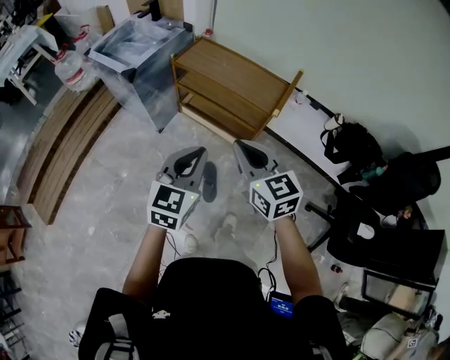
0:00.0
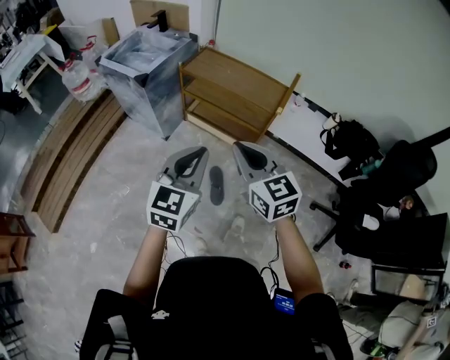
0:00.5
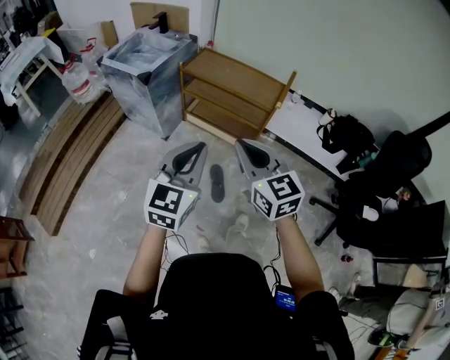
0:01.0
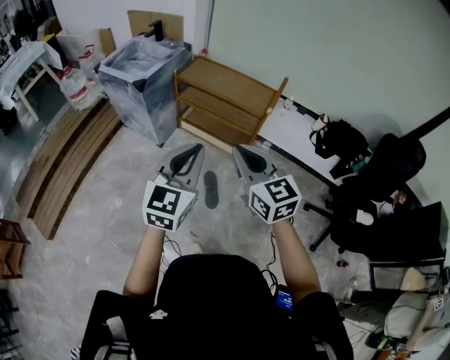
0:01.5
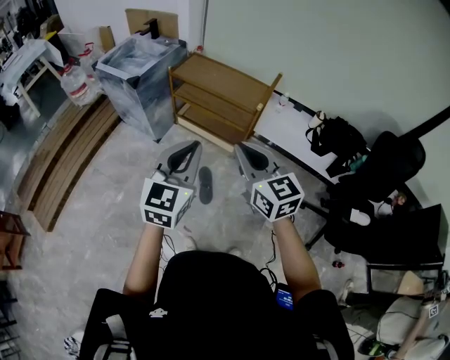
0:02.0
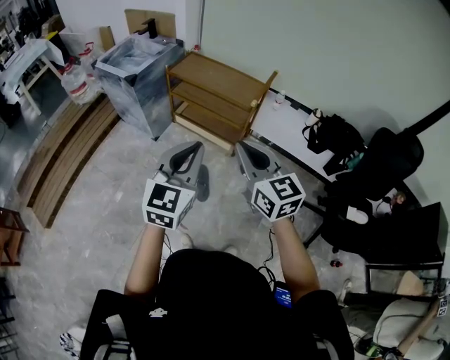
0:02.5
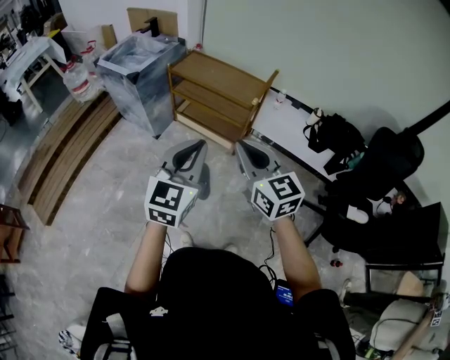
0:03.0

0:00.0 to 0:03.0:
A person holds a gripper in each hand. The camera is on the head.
0:00.0 to 0:01.5: The left gripper shifts approximately 15 cm backward, upward and to the left; the right gripper heads backward, covering some 15 cm.
0:01.5 to 0:03.0: Both grippers move to the right and backward, about 10 cm.

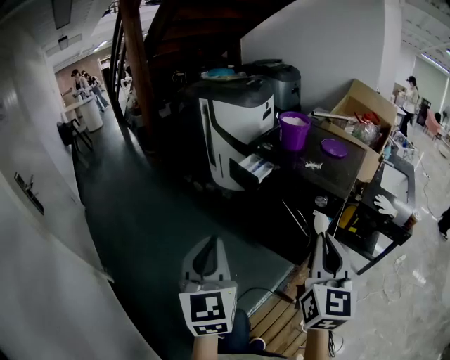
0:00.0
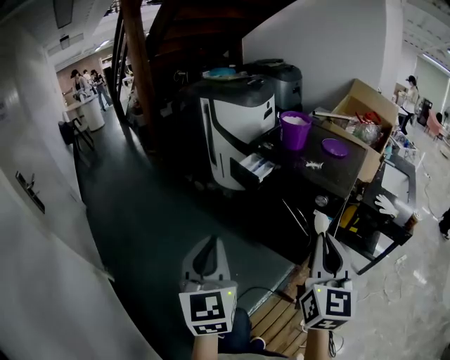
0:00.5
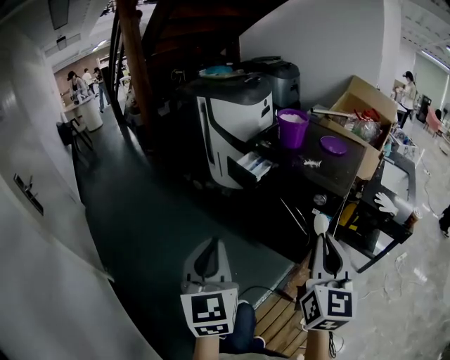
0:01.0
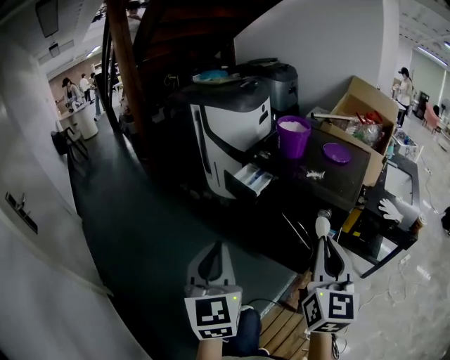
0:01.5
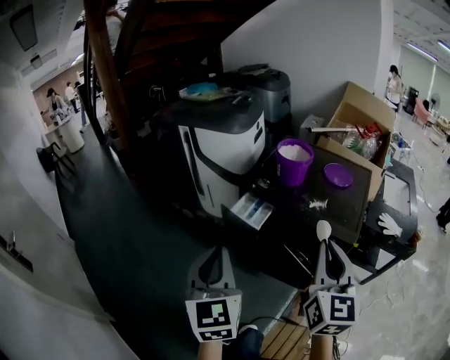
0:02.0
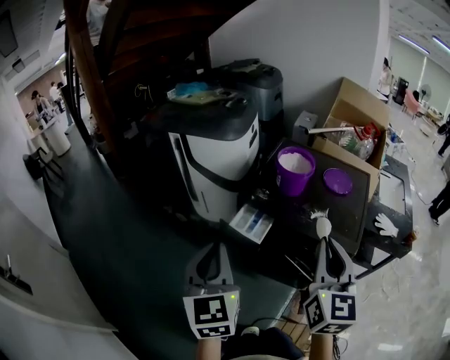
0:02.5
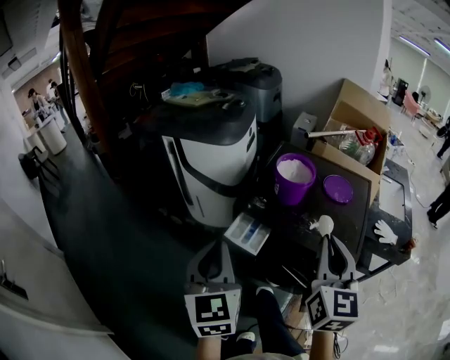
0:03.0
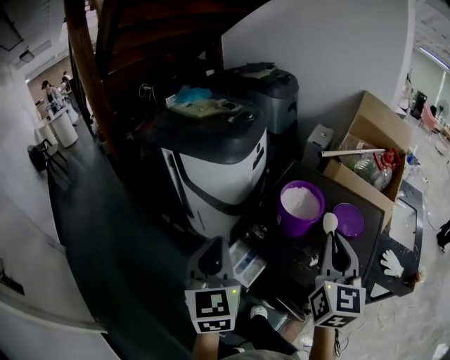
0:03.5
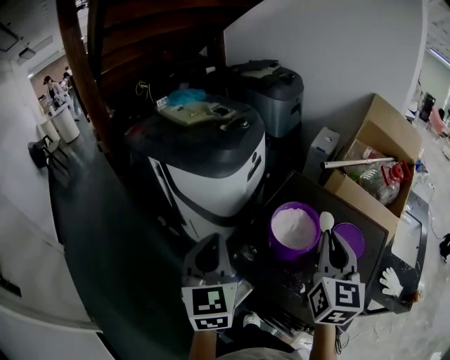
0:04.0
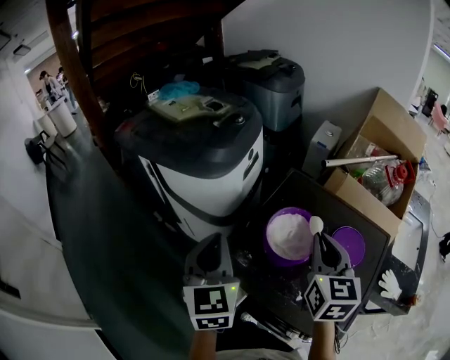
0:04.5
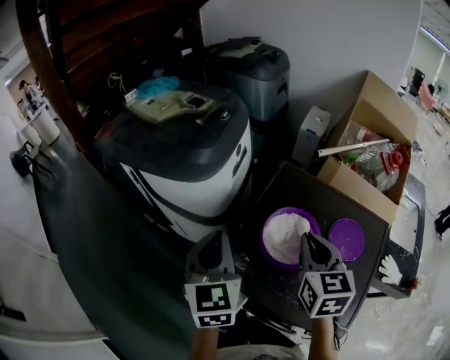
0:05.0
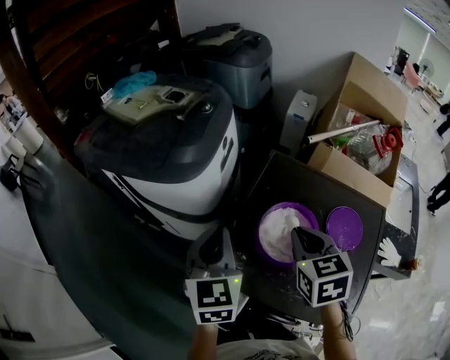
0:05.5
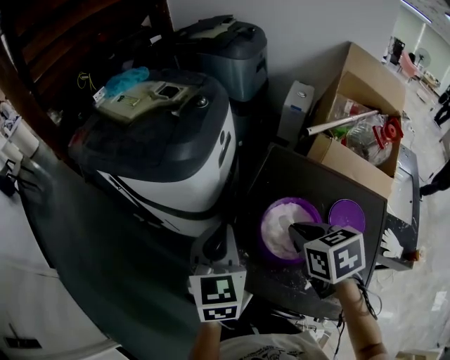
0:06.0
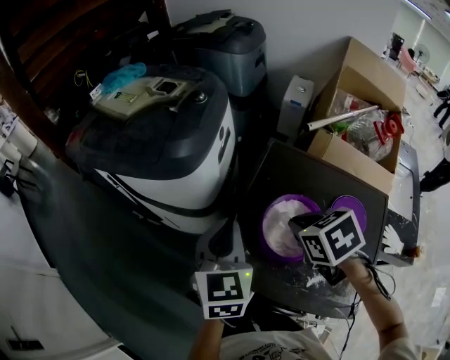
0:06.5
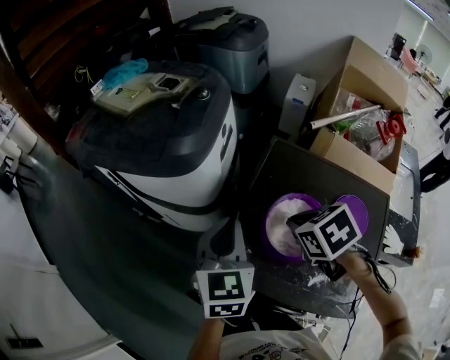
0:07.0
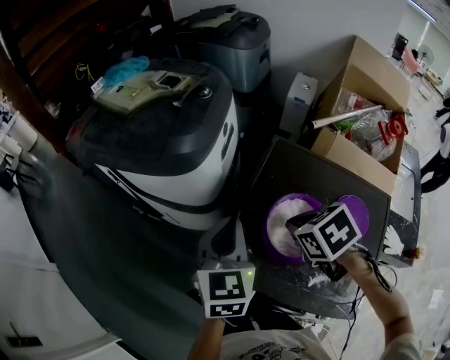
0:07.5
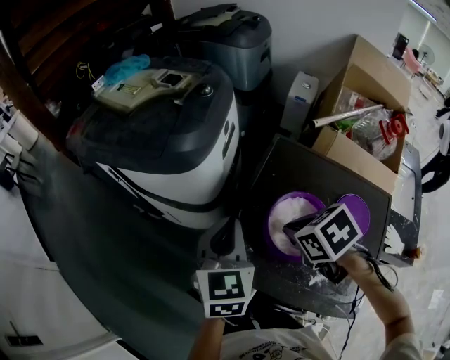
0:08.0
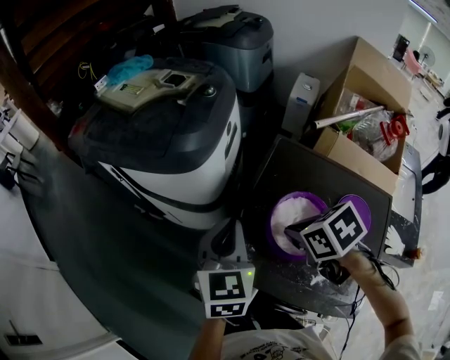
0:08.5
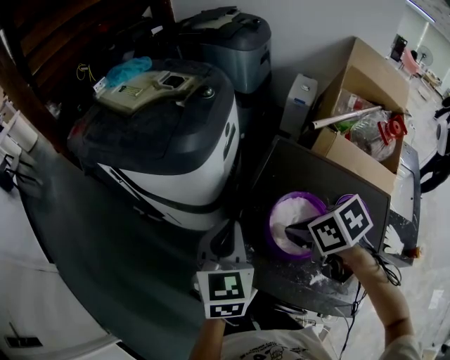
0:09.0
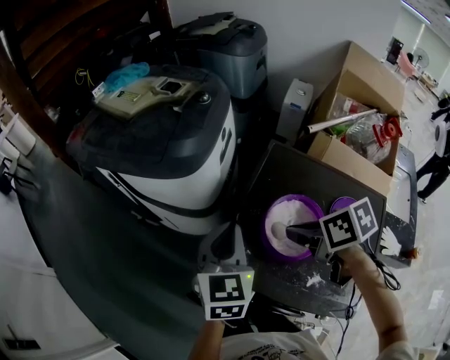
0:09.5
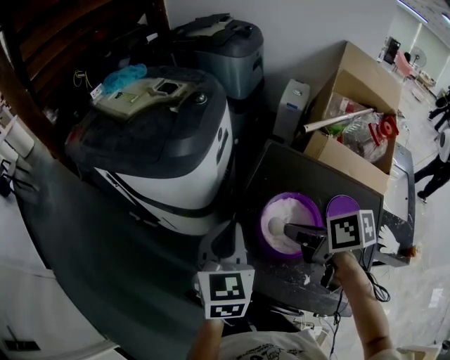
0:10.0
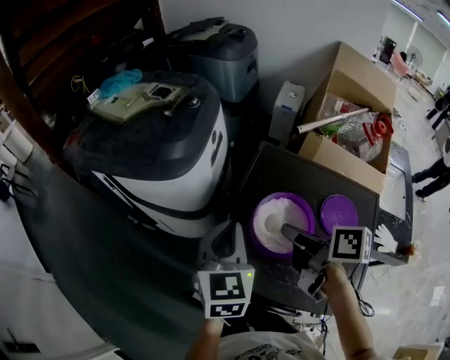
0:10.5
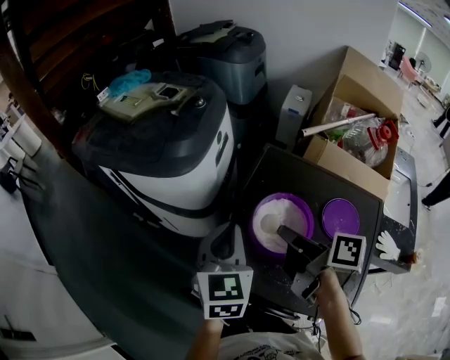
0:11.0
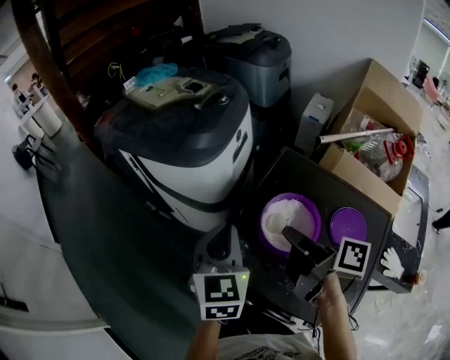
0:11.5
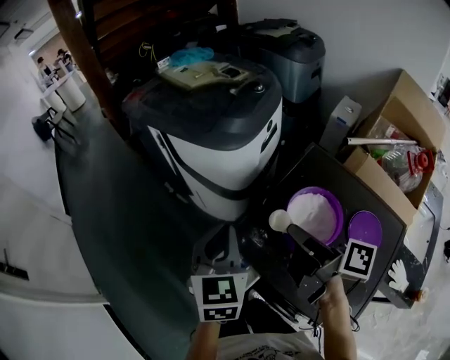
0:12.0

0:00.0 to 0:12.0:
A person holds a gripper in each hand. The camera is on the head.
0:00.0 to 0:02.0: Both grippers travel together forward, some 25 cm.
0:02.0 to 0:04.0: Both grippers travel together forward, about 40 cm.
0:04.0 to 0:06.0: The left gripper goes some 15 cm forward, downward and to the right. Meanwhile the right gripper goes some 15 cm downward and forward, and tips its fingers downward by some 40 degrees.
0:06.0 to 0:08.0: The right gripper changes its angle by roughly 20 degrees.
0:08.0 to 0:10.0: The right gripper rotates approximately 50 degrees.
0:10.0 to 0:12.0: The right gripper heads to the left, covering roughly 5 cm, and rotates some 30 degrees; the left gripper moves to the left and backward, approximately 10 cm, and swivels some 20 degrees.

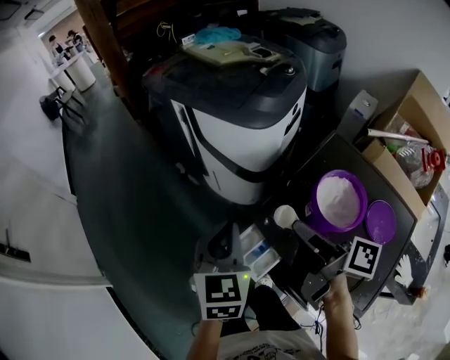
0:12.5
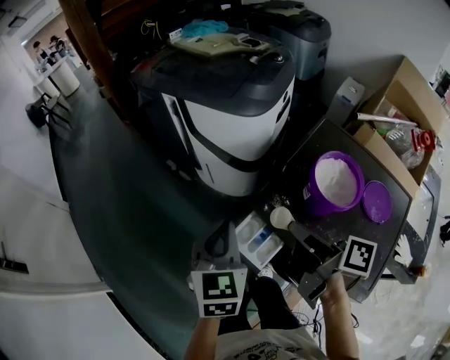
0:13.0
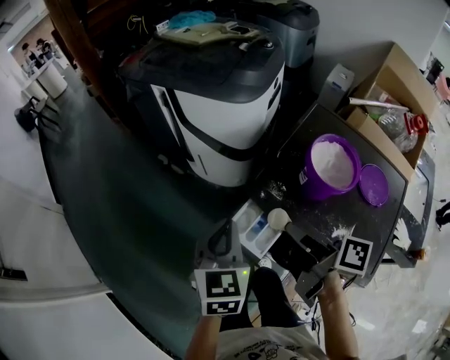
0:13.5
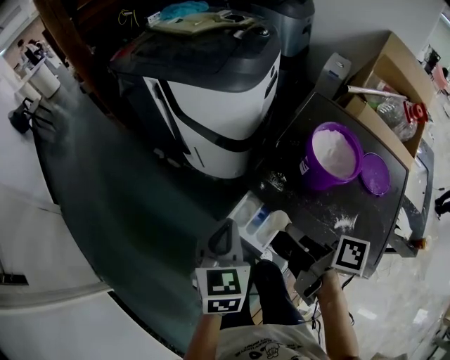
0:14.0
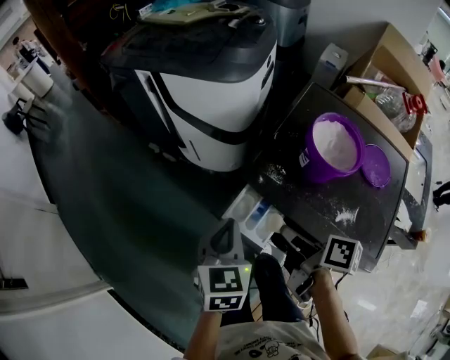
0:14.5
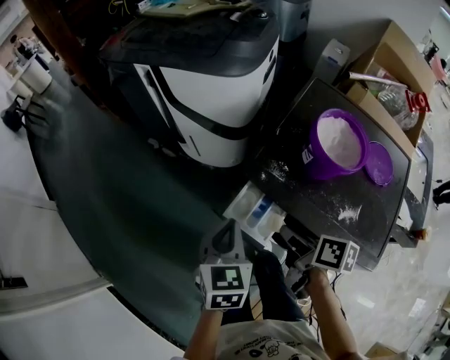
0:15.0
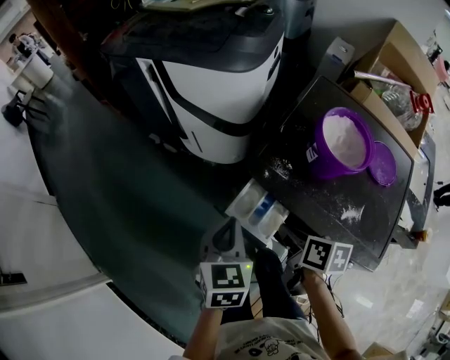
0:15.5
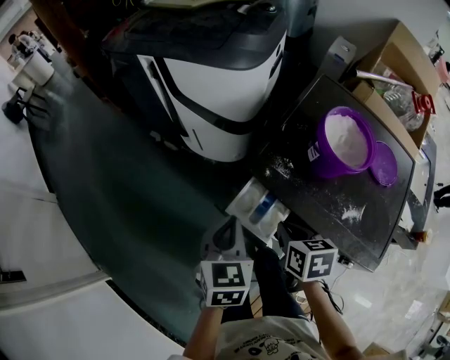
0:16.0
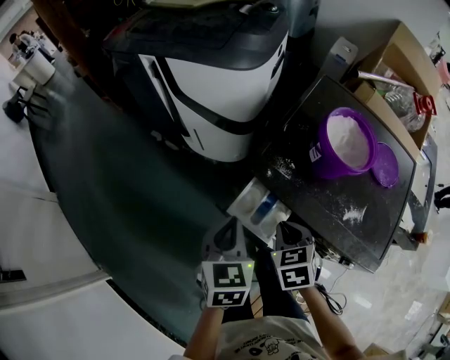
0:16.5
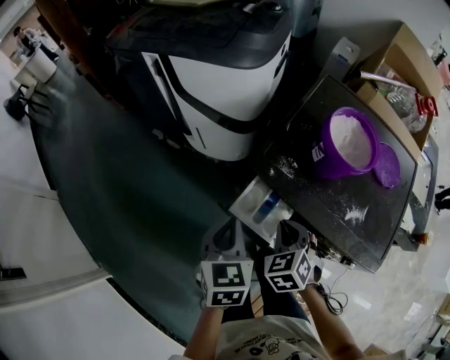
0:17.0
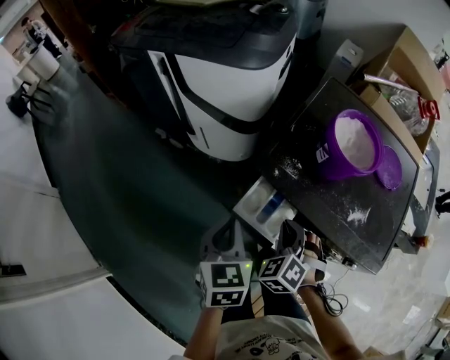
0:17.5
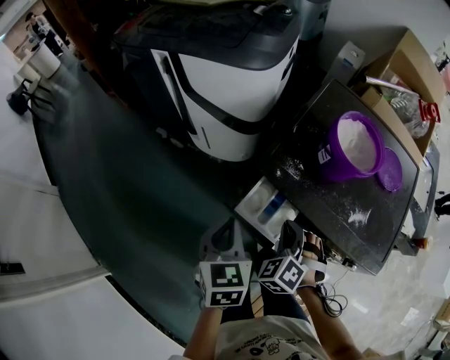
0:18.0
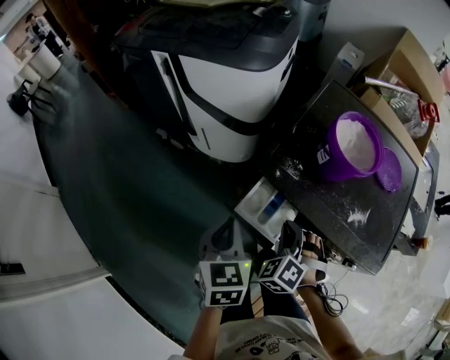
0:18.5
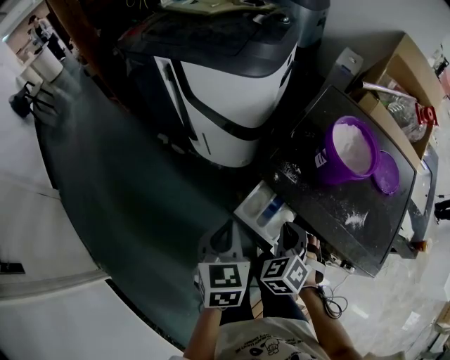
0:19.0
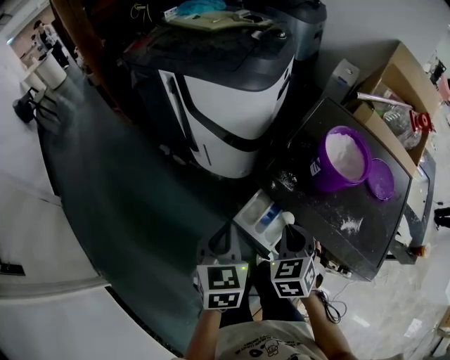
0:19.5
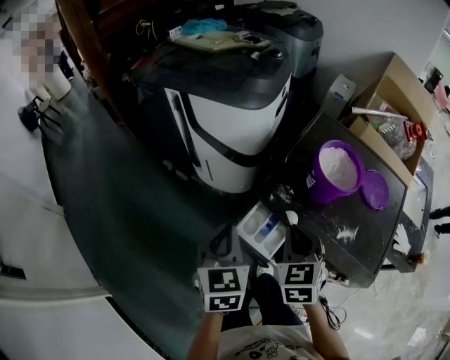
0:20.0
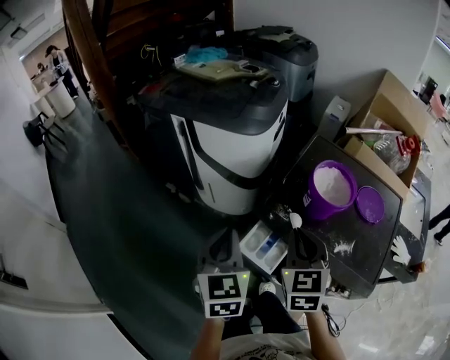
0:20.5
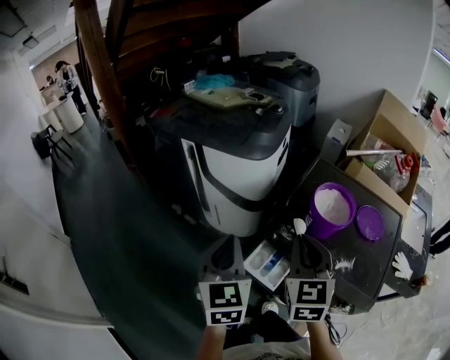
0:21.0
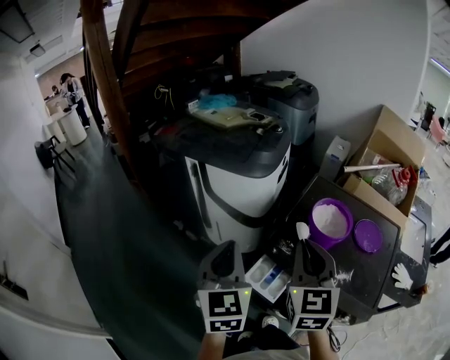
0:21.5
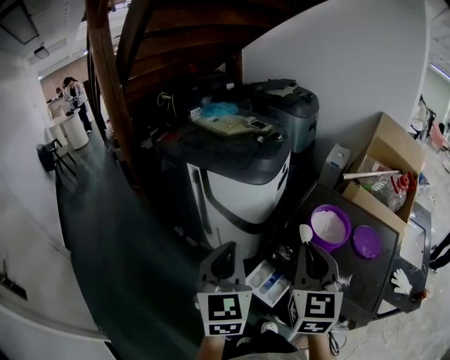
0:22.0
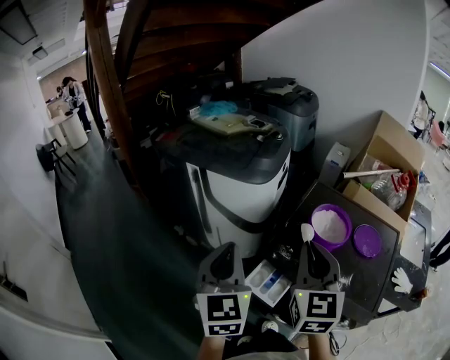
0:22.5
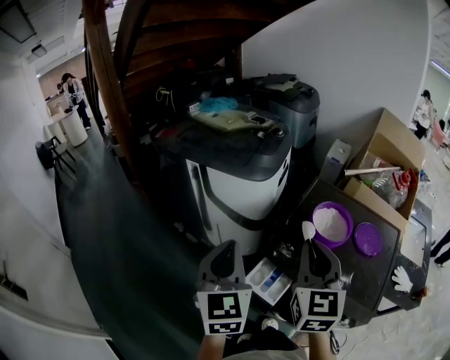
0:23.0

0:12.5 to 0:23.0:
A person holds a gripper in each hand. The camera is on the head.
0:12.5 to 0:14.5: The two grippers go some 15 cm downward and backward. The right gripper changes its angle by some 20 degrees.
0:14.5 to 0:16.5: The right gripper travels downward by some 5 cm, and rotates around the line of its fingers by approximately 70 degrees, counterclockwise from behind.
0:16.5 to 0:19.0: The right gripper rotates approximately 30 degrees.
0:19.0 to 0:21.0: Both grippers travel together upward, approximately 20 cm. The left gripper changes its angle by approximately 20 degrees. Meanwhile the right gripper tips its fingers upward by some 30 degrees.
0:21.0 to 0:23.0: Both grippers travel together upward, about 5 cm.

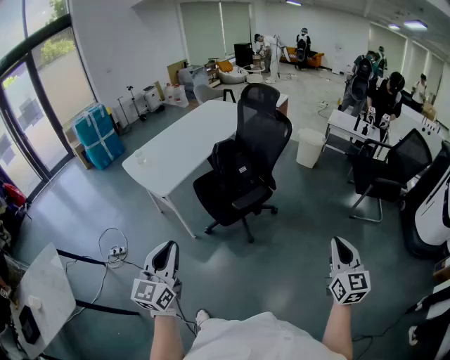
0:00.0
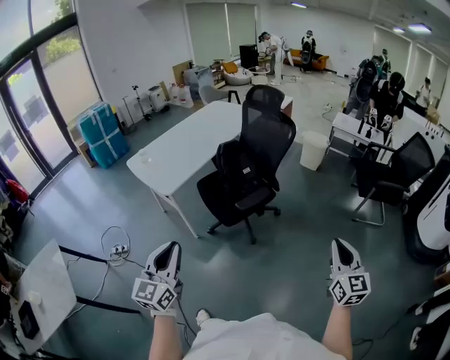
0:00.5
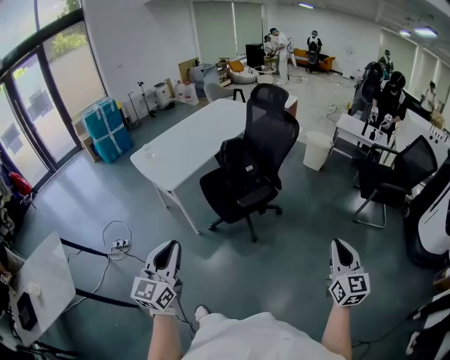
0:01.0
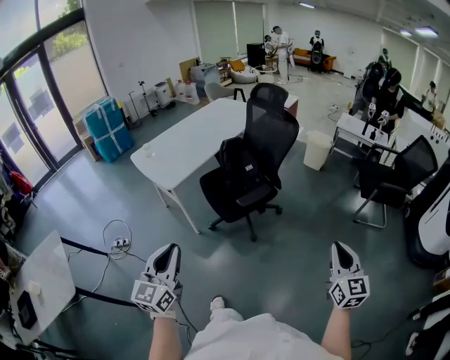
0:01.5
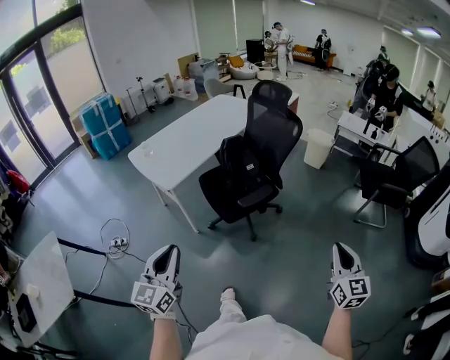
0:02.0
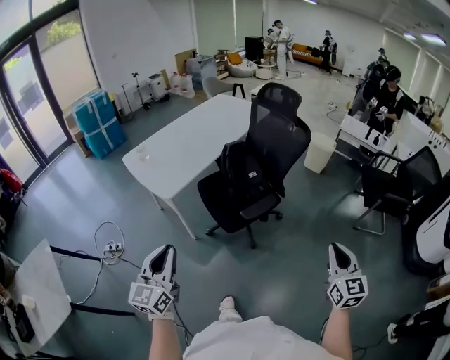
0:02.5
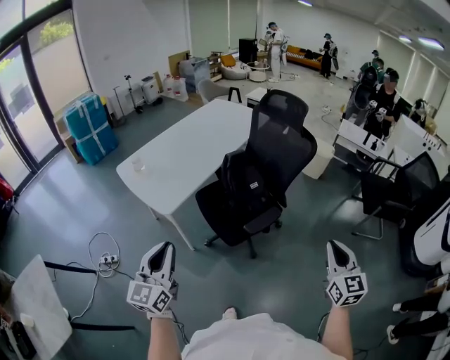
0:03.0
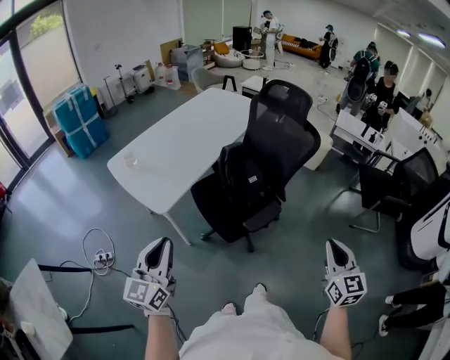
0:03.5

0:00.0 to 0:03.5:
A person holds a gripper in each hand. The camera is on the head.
0:00.0 to 0:02.0: The grippers stay close to where they were, moving slightly.
0:02.0 to 0:03.5: Both grippers move forward and to the left, some 25 cm.
